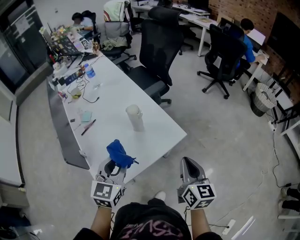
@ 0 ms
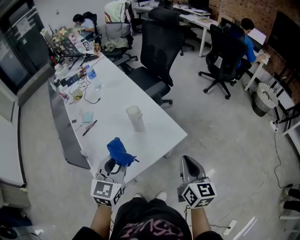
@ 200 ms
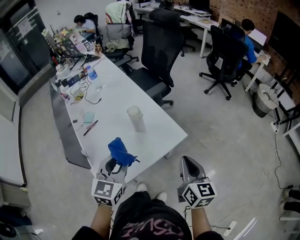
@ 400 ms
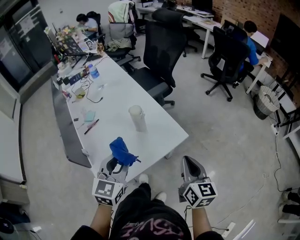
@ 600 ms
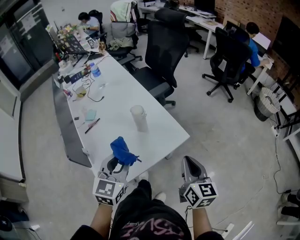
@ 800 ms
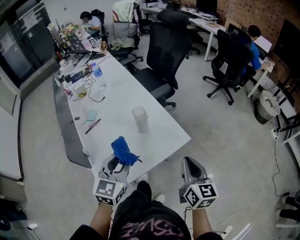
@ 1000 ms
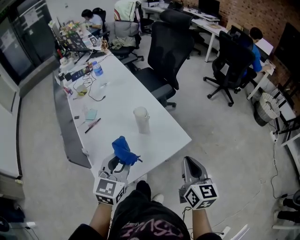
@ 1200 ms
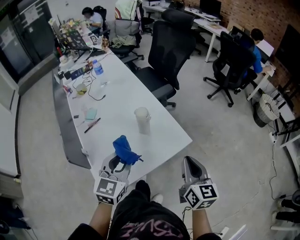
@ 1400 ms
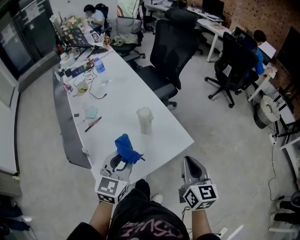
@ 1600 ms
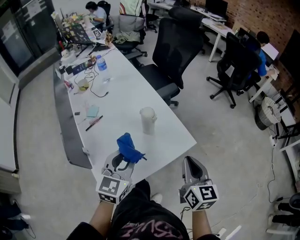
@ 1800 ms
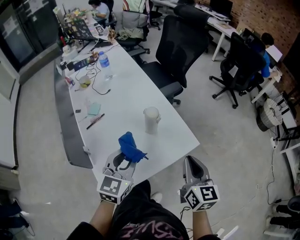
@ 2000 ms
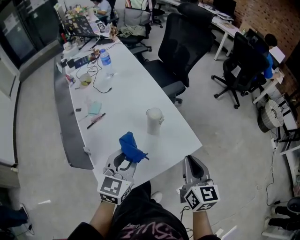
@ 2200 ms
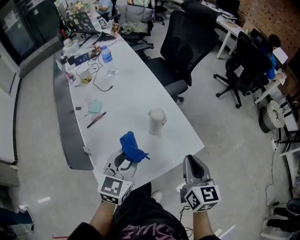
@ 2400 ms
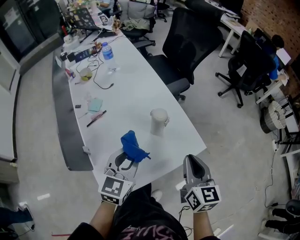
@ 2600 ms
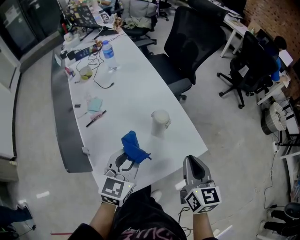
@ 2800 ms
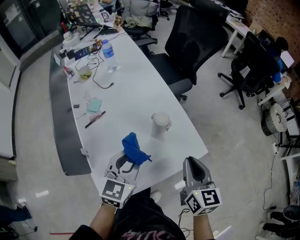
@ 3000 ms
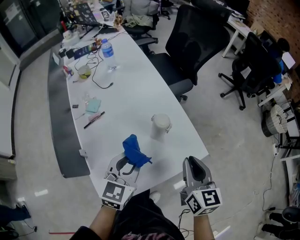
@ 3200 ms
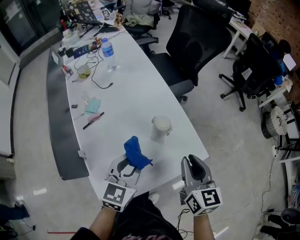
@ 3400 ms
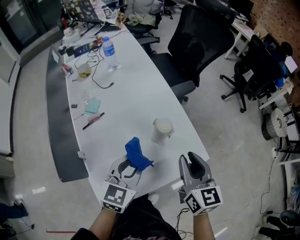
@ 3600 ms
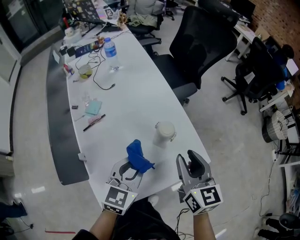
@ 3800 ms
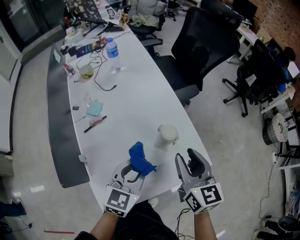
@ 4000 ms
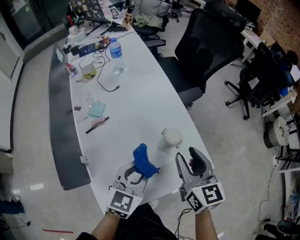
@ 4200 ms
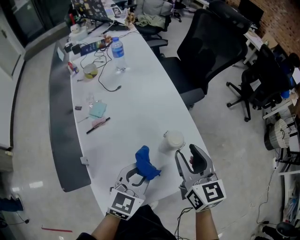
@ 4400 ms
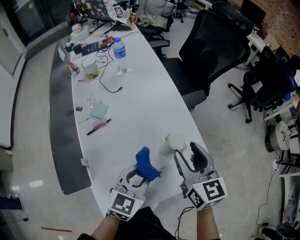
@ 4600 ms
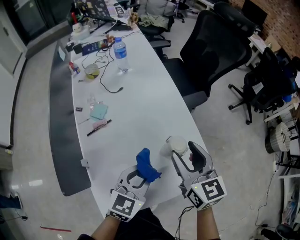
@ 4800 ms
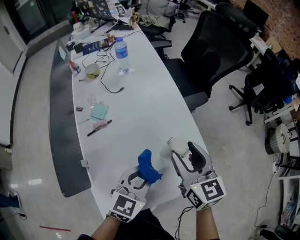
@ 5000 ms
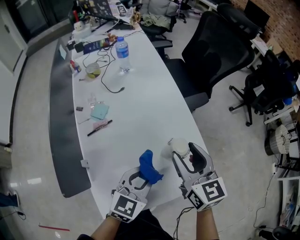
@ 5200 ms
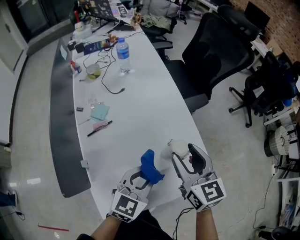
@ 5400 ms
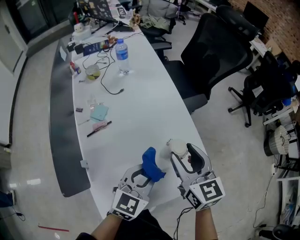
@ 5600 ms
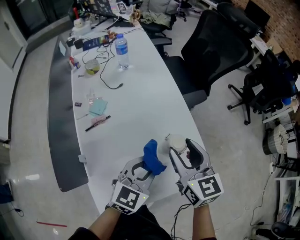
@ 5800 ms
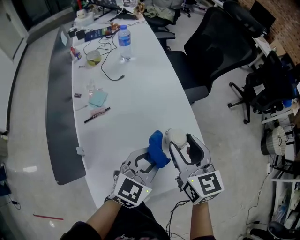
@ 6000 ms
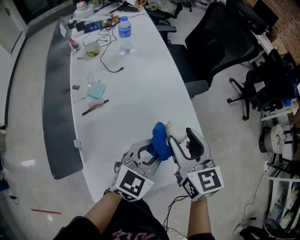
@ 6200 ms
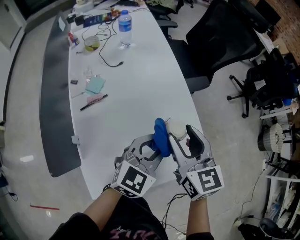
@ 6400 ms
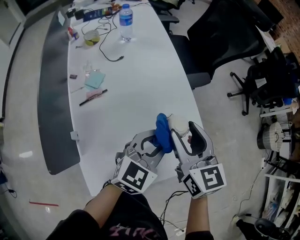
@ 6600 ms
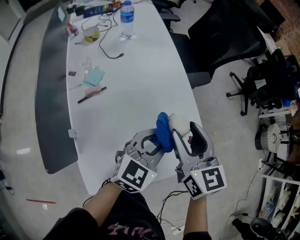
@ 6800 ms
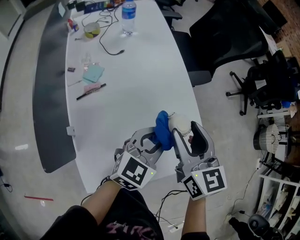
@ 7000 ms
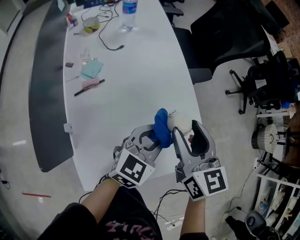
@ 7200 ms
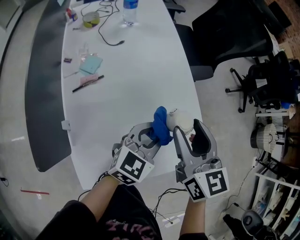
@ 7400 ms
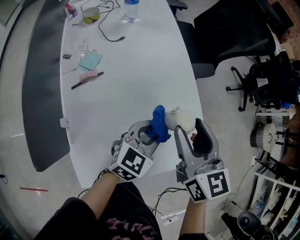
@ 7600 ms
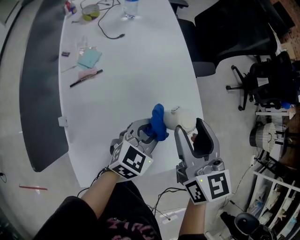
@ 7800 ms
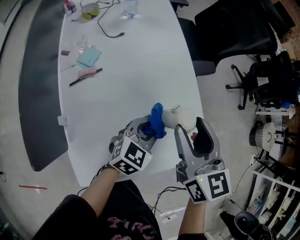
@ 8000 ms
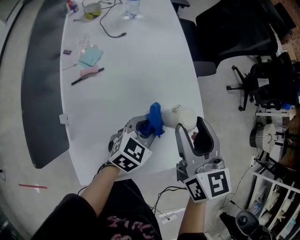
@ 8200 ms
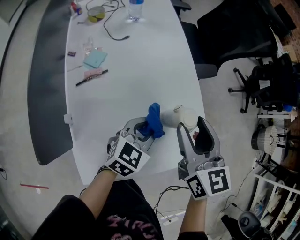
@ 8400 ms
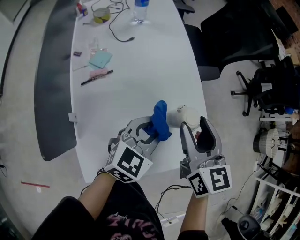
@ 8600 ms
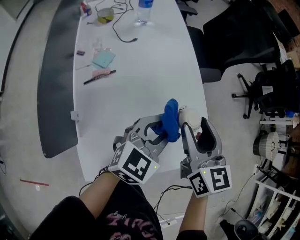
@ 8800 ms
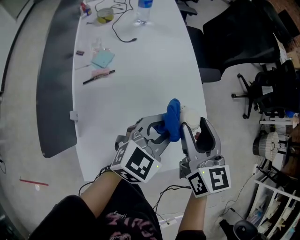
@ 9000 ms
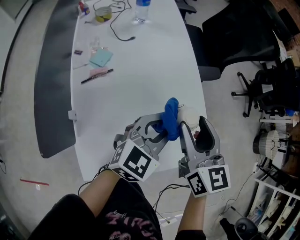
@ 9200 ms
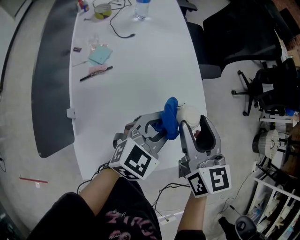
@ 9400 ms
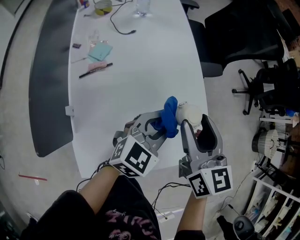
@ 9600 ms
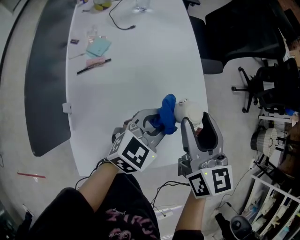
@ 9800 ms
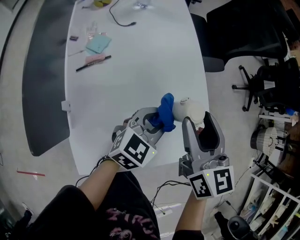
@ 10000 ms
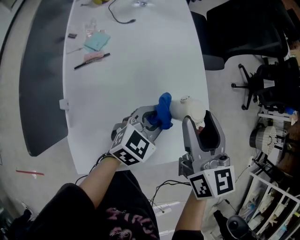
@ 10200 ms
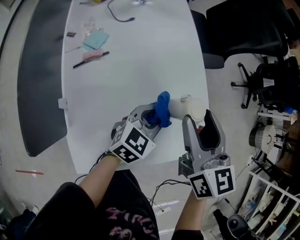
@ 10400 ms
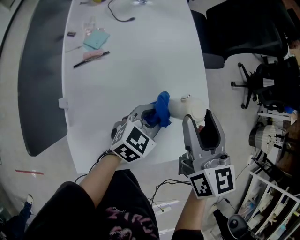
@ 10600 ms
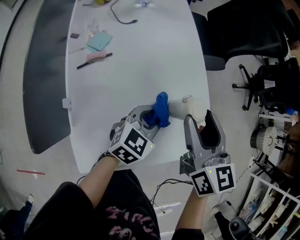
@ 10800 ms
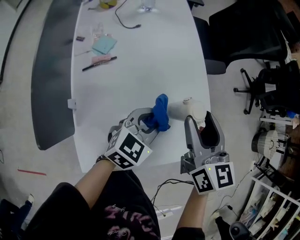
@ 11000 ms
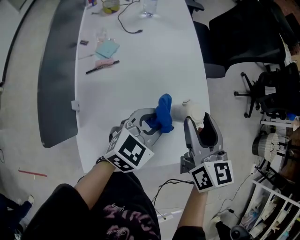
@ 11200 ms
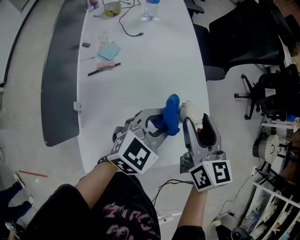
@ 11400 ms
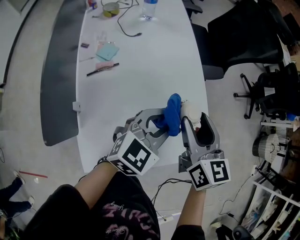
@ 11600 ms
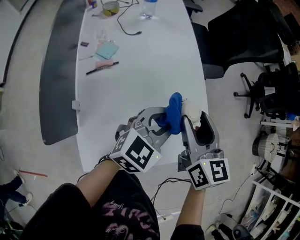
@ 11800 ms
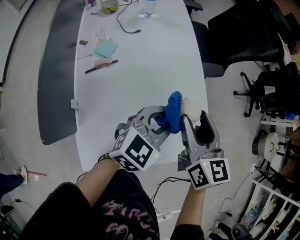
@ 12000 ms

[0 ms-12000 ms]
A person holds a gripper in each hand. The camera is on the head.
0 ms to 1600 ms: The right gripper shifts by some 5 cm.
1600 ms to 3000 ms: The left gripper is displaced forward and downward by some 10 cm; the right gripper moves forward and to the left, some 10 cm.
3000 ms to 4400 ms: The left gripper ends up about 5 cm from where it was. Meanwhile the right gripper moves forward and to the left, approximately 15 cm, and opens up.
4400 ms to 6000 ms: There are only small adjustments of the grippers.
6000 ms to 7600 ms: The left gripper goes approximately 10 cm downward.
7600 ms to 9000 ms: The left gripper moves upward, about 5 cm.
9000 ms to 10400 ms: The left gripper heads downward, covering roughly 10 cm.
10400 ms to 12000 ms: The left gripper is displaced upward by roughly 10 cm.

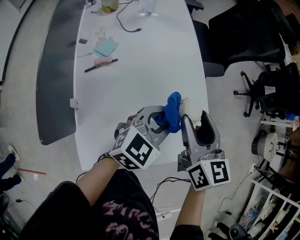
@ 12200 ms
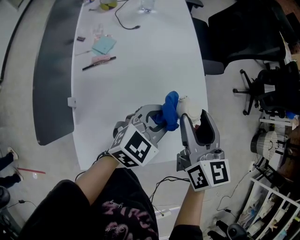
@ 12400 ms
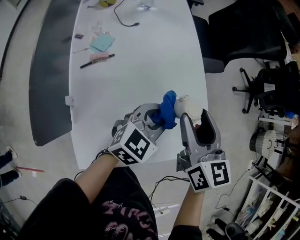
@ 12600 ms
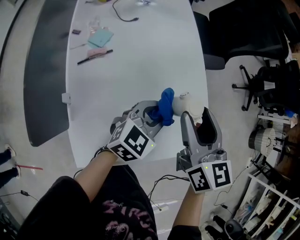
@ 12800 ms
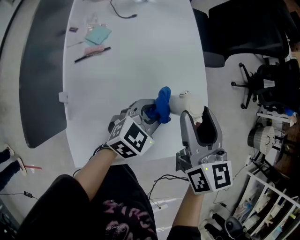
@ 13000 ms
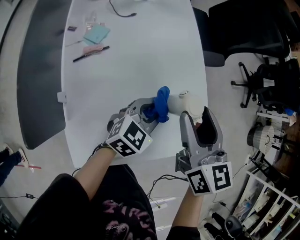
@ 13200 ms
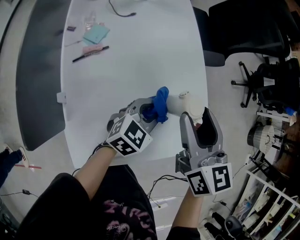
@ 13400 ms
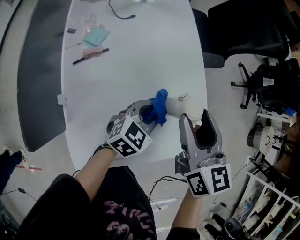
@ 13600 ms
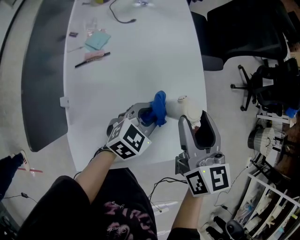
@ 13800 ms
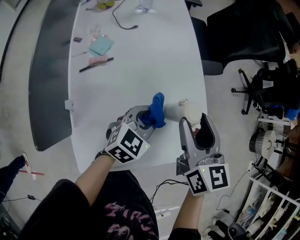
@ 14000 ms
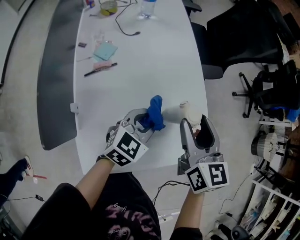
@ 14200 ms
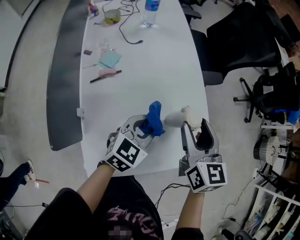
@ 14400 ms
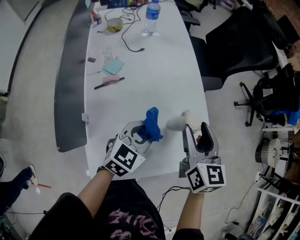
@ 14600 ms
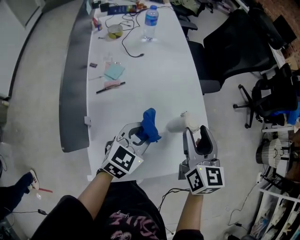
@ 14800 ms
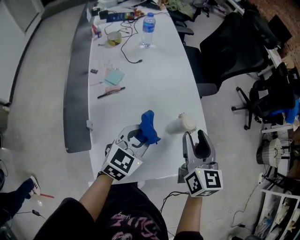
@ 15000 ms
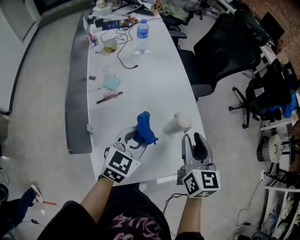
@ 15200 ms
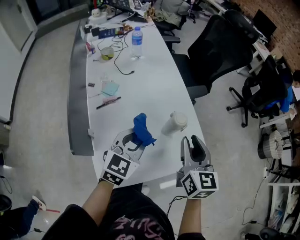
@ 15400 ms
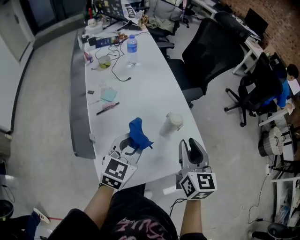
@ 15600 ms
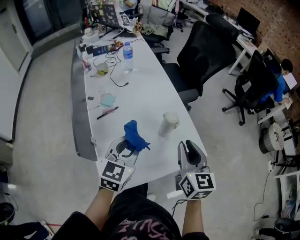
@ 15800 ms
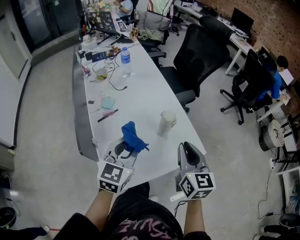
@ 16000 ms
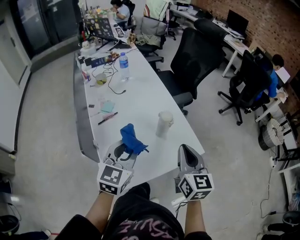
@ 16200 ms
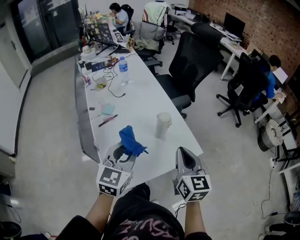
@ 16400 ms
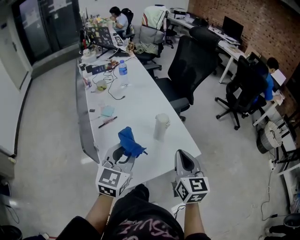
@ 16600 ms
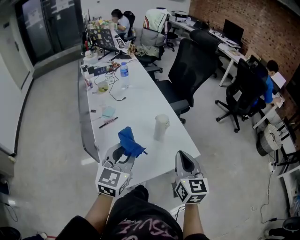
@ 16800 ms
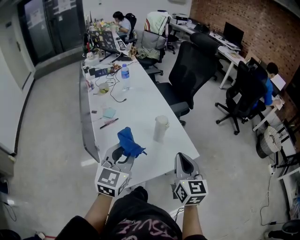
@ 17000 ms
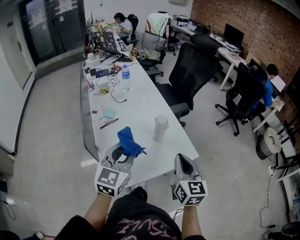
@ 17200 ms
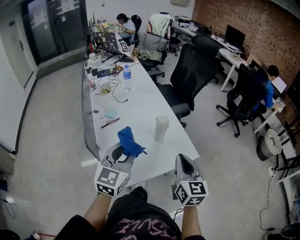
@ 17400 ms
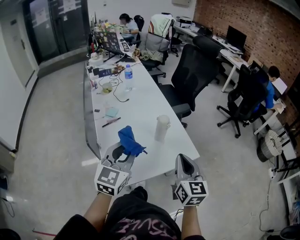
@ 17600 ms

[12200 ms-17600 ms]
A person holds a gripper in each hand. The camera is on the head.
12200 ms to 13600 ms: The left gripper shifts about 10 cm downward.
13600 ms to 15000 ms: The left gripper shifts roughly 15 cm upward, to the left and backward.
15000 ms to 16200 ms: The right gripper moves backward, approximately 15 cm, and closes up, while the left gripper goes about 15 cm upward and backward.
16200 ms to 17600 ms: The two grippers go some 5 cm backward.

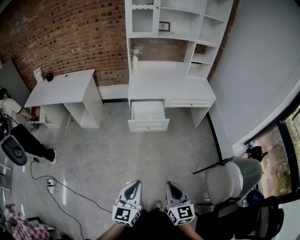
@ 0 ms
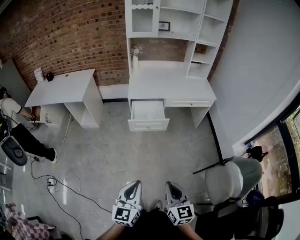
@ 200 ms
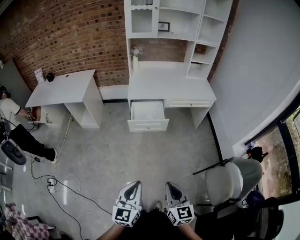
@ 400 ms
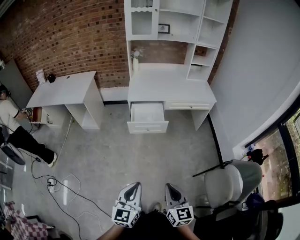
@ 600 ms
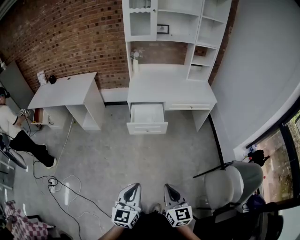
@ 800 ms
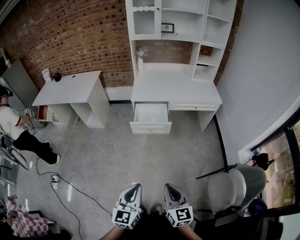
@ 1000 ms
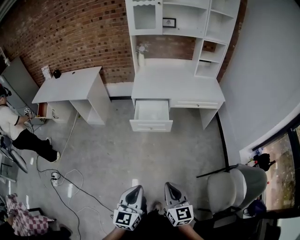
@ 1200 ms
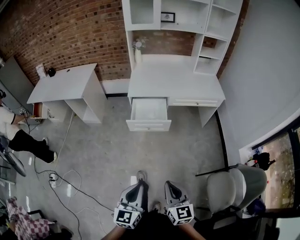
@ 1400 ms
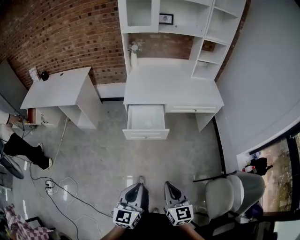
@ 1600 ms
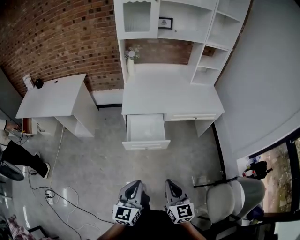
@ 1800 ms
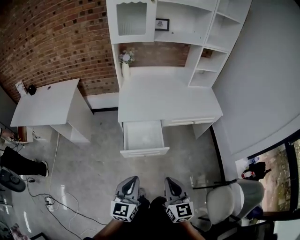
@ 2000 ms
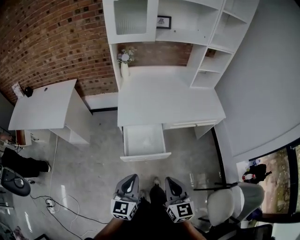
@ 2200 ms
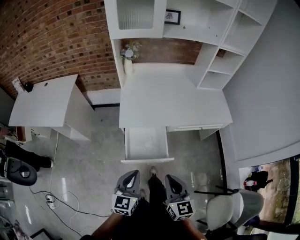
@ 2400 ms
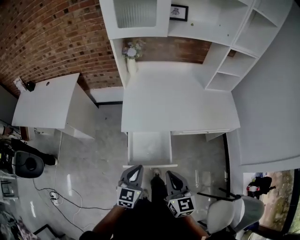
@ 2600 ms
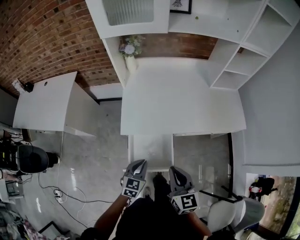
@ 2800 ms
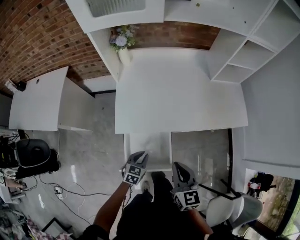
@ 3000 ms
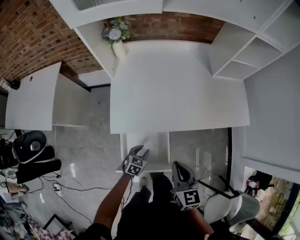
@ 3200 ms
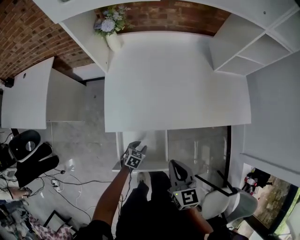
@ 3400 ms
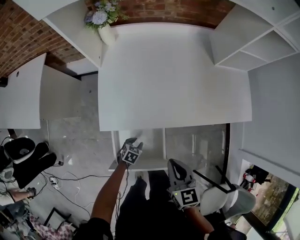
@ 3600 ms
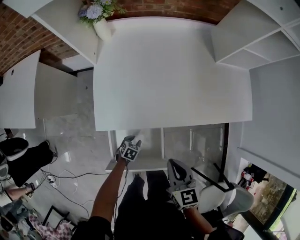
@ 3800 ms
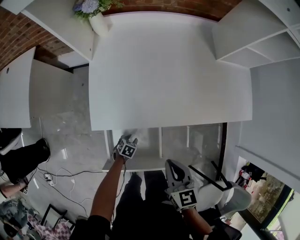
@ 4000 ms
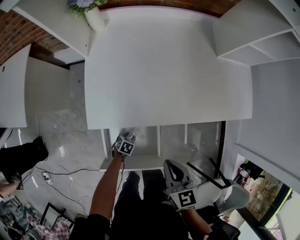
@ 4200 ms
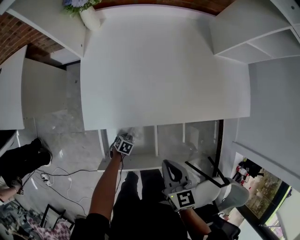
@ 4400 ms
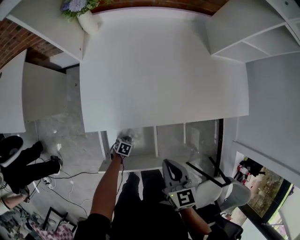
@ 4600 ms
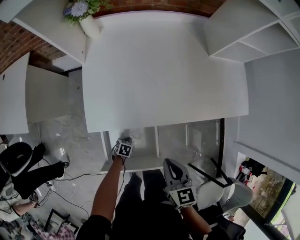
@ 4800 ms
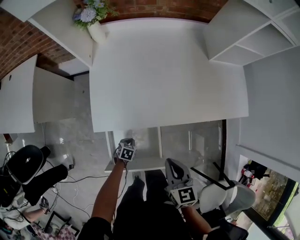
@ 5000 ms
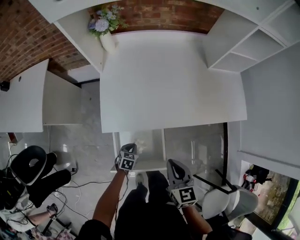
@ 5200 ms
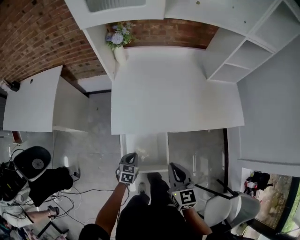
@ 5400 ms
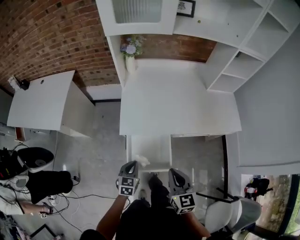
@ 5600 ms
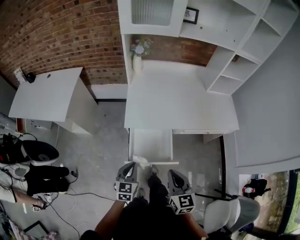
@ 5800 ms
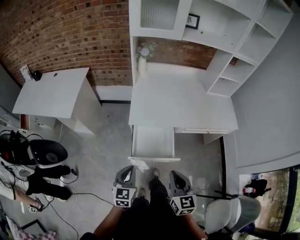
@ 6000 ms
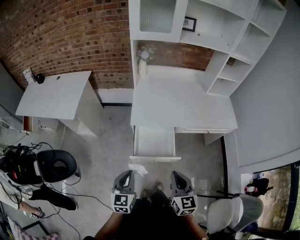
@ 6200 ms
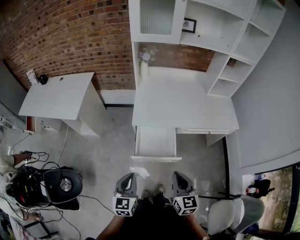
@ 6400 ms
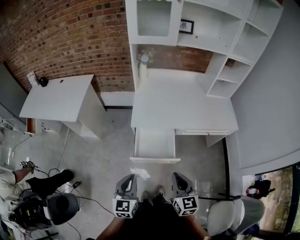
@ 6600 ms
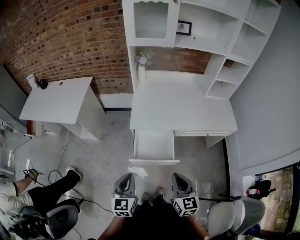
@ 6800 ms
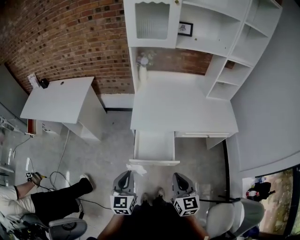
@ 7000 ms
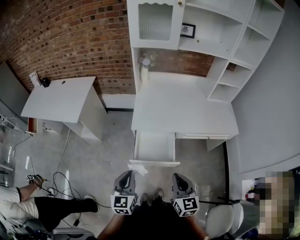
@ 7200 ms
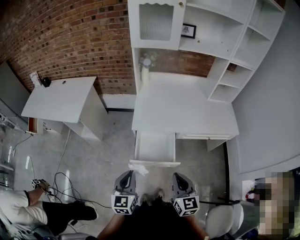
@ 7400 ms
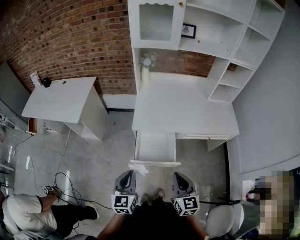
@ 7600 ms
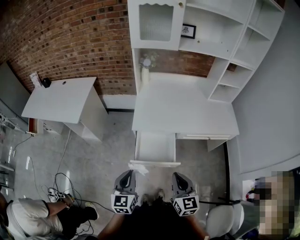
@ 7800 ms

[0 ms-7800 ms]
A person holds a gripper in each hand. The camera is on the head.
0 ms to 1600 ms: The grippers both shift forward by approximately 15 cm.
1600 ms to 3200 ms: The pair of grippers is taken forward, about 60 cm. The left gripper shifts about 35 cm downward, tips its fingers downward by approximately 40 degrees, and opens.
3200 ms to 4600 ms: The left gripper shifts roughly 20 cm downward, turns by about 30 degrees, and closes, while the right gripper is displaced downward by about 10 cm.
4600 ms to 6200 ms: The left gripper travels upward by some 50 cm, and tips its fingers upward by some 50 degrees, while the right gripper changes place by some 35 cm, and swivels about 20 degrees.
6200 ms to 7800 ms: The grippers make only small movements.
